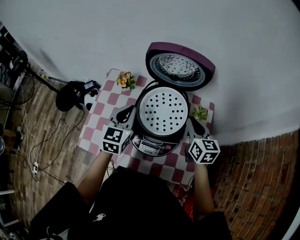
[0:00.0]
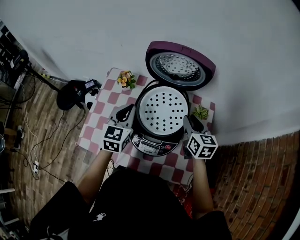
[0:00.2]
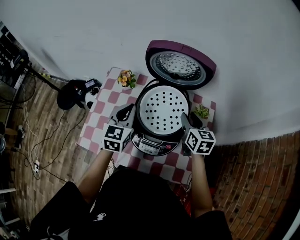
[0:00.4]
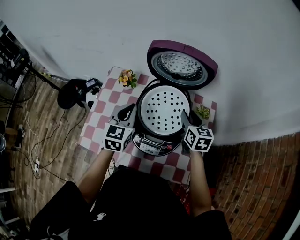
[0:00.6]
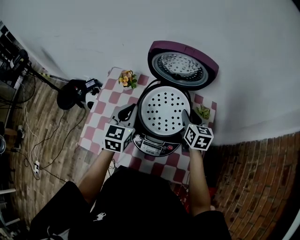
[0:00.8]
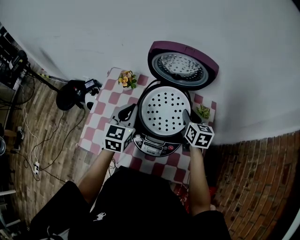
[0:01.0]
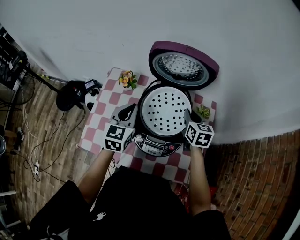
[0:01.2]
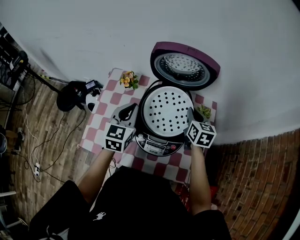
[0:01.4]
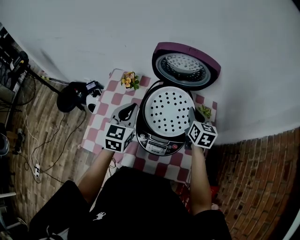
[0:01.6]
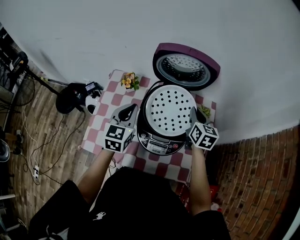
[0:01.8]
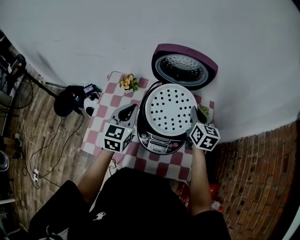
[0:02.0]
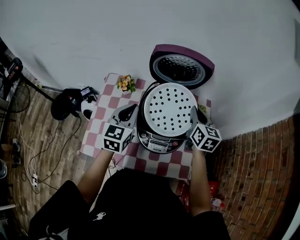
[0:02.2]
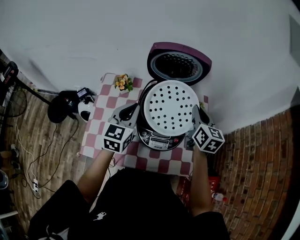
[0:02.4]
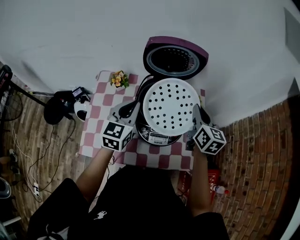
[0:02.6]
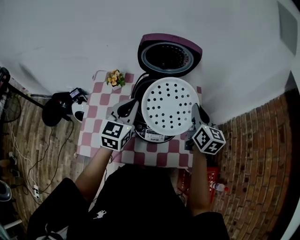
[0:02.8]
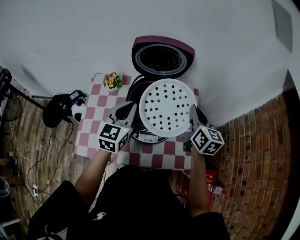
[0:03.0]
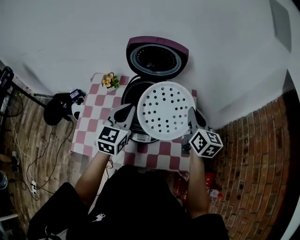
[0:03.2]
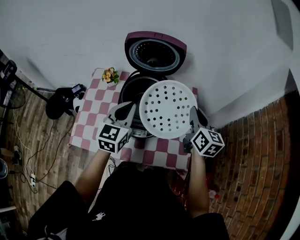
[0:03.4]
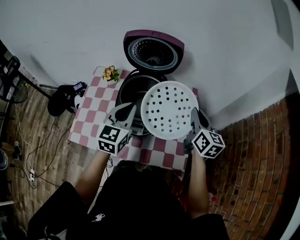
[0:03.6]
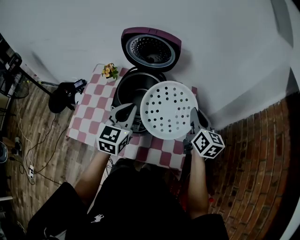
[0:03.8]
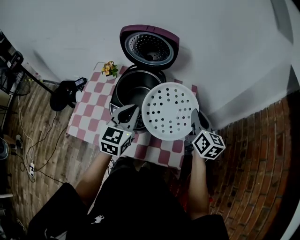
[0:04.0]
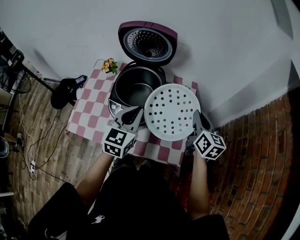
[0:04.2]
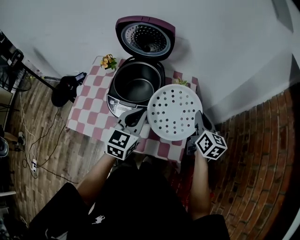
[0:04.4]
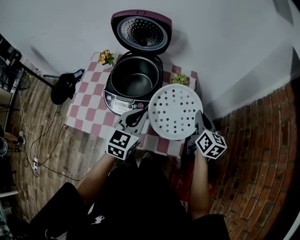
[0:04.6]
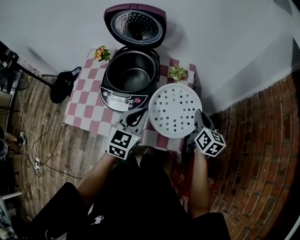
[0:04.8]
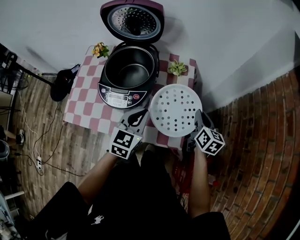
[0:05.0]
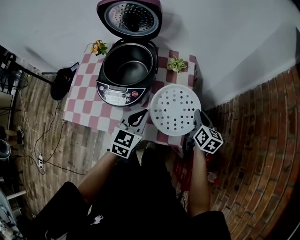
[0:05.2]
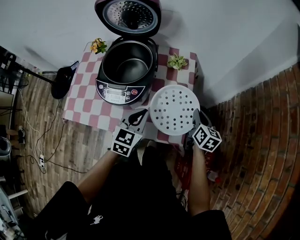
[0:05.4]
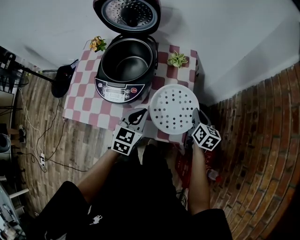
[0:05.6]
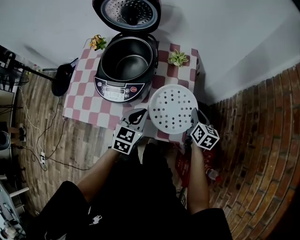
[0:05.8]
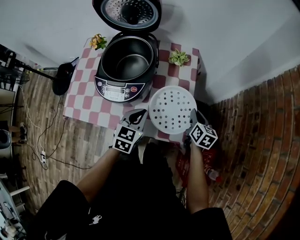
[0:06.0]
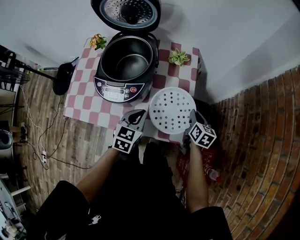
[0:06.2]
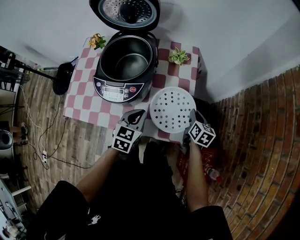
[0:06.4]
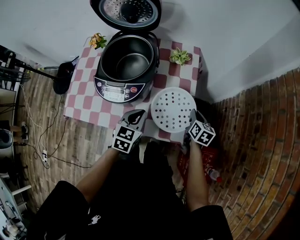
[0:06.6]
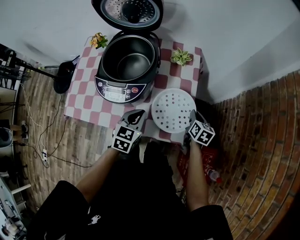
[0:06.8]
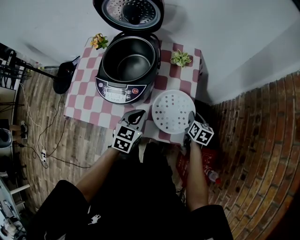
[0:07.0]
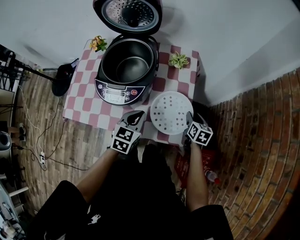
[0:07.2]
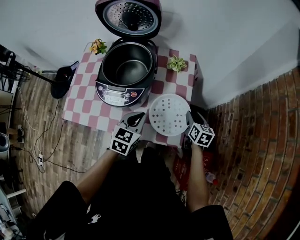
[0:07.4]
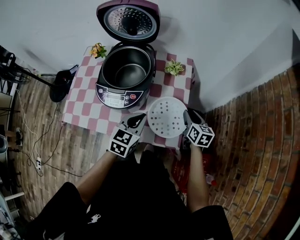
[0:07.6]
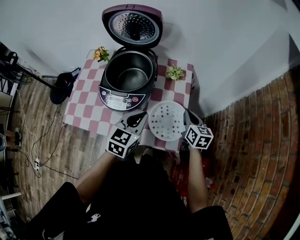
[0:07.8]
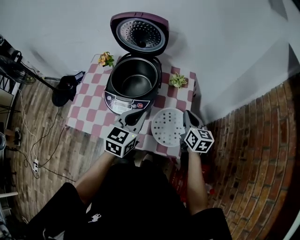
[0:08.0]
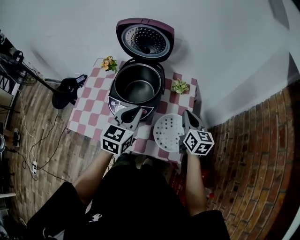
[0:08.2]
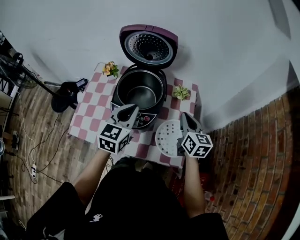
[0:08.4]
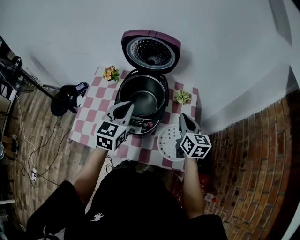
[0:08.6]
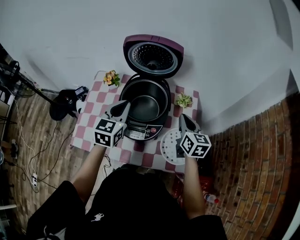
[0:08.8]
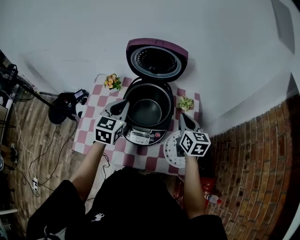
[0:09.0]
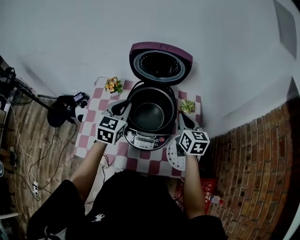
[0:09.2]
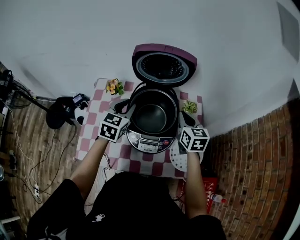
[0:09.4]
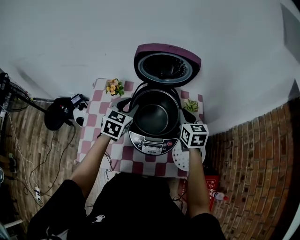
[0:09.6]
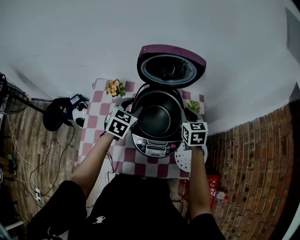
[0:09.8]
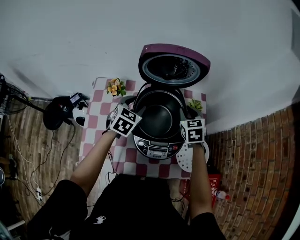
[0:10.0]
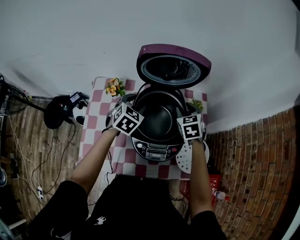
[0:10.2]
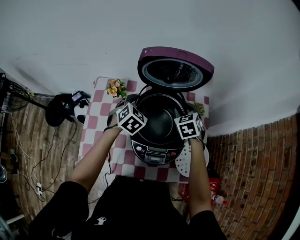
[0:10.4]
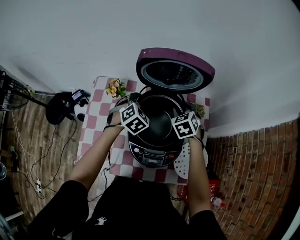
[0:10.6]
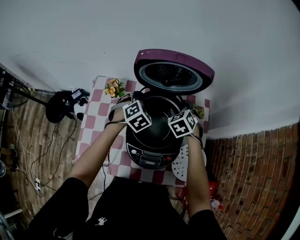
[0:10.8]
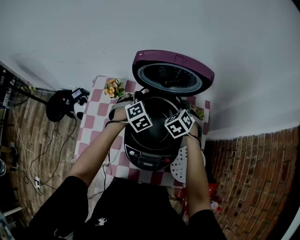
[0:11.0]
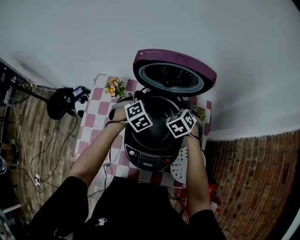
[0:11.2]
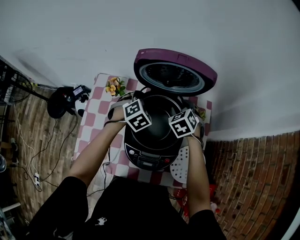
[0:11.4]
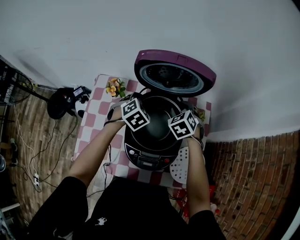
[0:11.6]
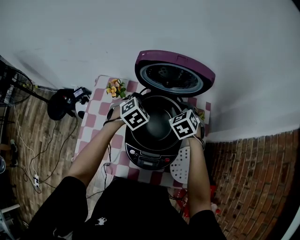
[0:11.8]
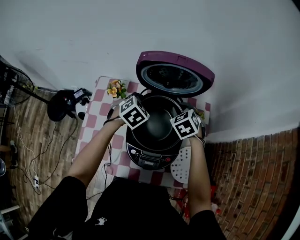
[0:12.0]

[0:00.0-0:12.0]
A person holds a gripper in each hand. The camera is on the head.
0:00.0 to 0:01.6: The right gripper travels forward by about 5 cm, and opens and closes again.
0:01.6 to 0:03.0: The left gripper travels to the right by about 5 cm, while the right gripper moves upward, backward and to the right, approximately 15 cm.
0:03.0 to 0:04.4: The right gripper shifts about 15 cm to the right and downward. The left gripper heads to the right and backward, covering about 20 cm.
0:04.4 to 0:06.0: The two grippers go approximately 15 cm downward.
0:06.0 to 0:07.6: The right gripper travels downward and back again, about 5 cm each way, and opens up.
0:07.6 to 0:09.0: The left gripper heads to the left, forward and upward, covering some 30 cm; the right gripper travels to the left, upward and forward by roughly 25 cm, and closes.
0:09.0 to 0:10.4: The left gripper travels forward and downward by some 15 cm, turns by some 30 degrees, and opens its fingers. The right gripper shifts about 15 cm forward, to the left and downward, turns by approximately 40 degrees, and opens up.
0:10.4 to 0:12.0: The left gripper closes up. The right gripper closes.

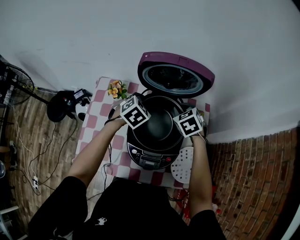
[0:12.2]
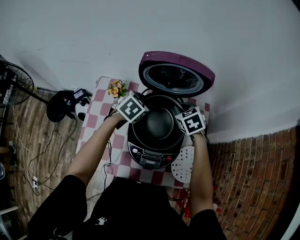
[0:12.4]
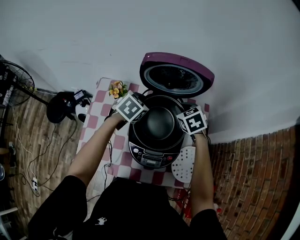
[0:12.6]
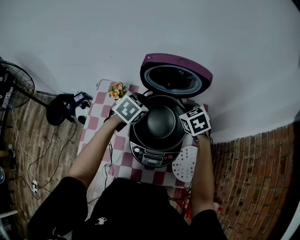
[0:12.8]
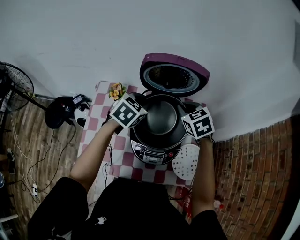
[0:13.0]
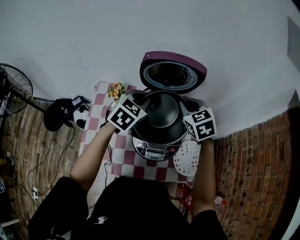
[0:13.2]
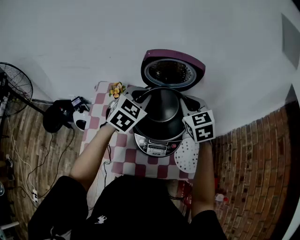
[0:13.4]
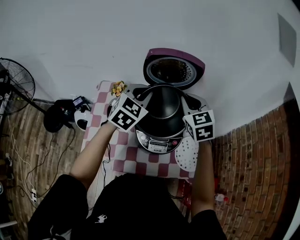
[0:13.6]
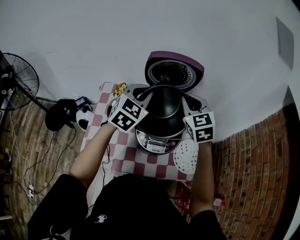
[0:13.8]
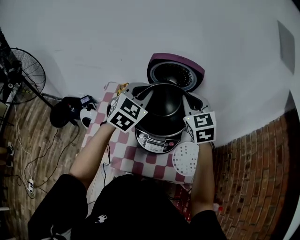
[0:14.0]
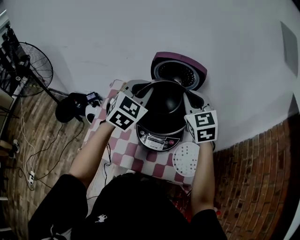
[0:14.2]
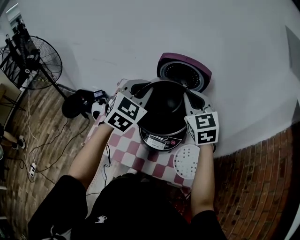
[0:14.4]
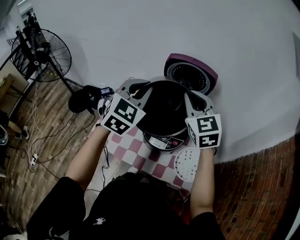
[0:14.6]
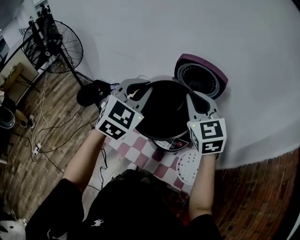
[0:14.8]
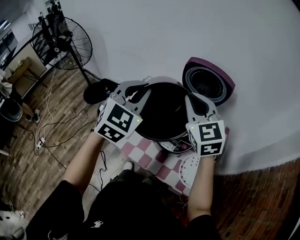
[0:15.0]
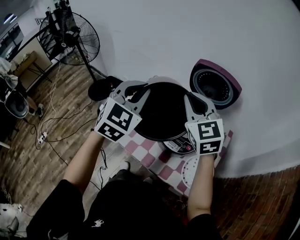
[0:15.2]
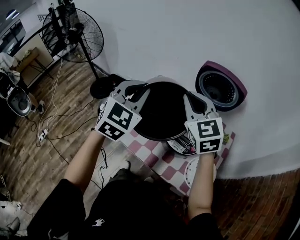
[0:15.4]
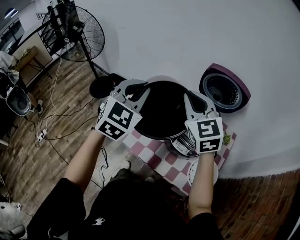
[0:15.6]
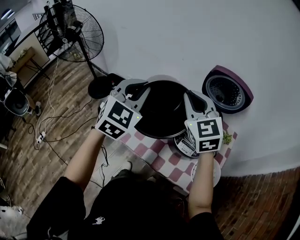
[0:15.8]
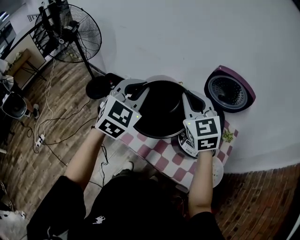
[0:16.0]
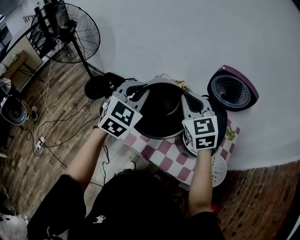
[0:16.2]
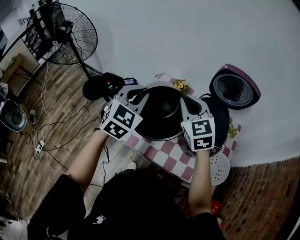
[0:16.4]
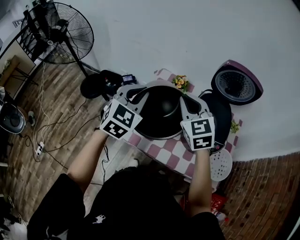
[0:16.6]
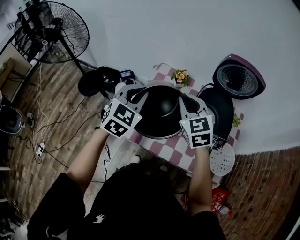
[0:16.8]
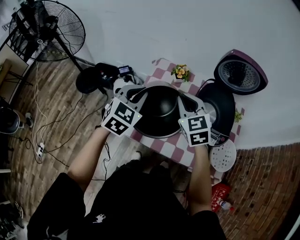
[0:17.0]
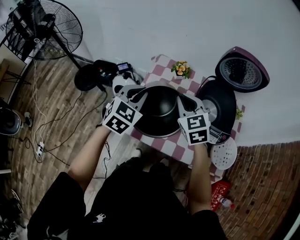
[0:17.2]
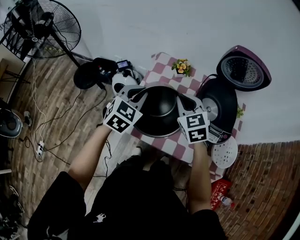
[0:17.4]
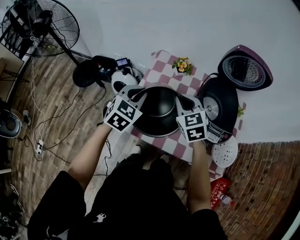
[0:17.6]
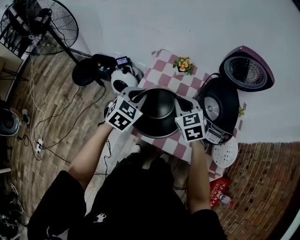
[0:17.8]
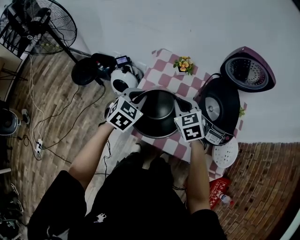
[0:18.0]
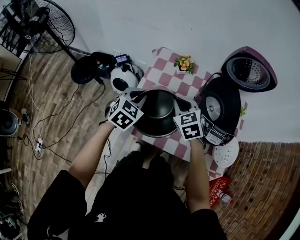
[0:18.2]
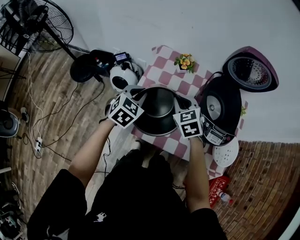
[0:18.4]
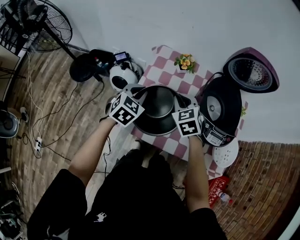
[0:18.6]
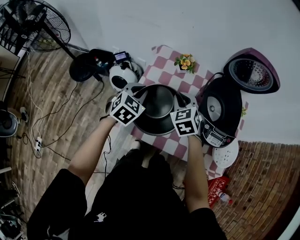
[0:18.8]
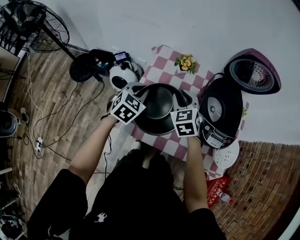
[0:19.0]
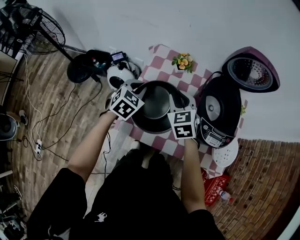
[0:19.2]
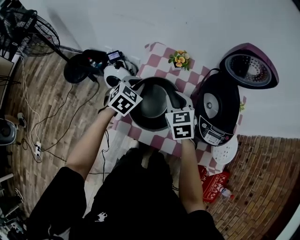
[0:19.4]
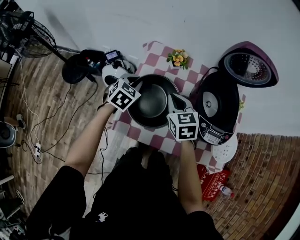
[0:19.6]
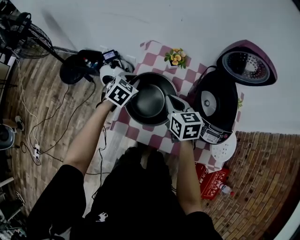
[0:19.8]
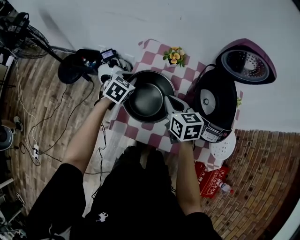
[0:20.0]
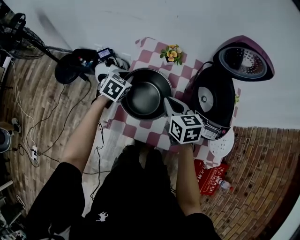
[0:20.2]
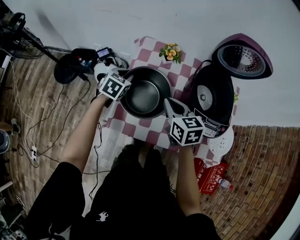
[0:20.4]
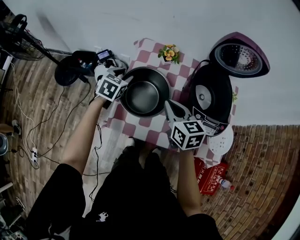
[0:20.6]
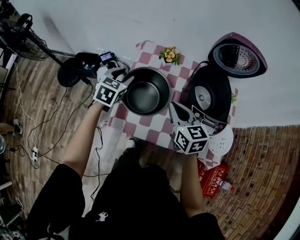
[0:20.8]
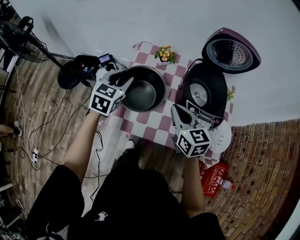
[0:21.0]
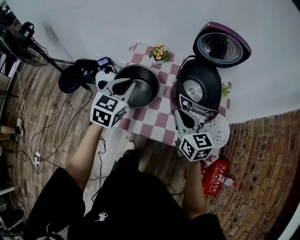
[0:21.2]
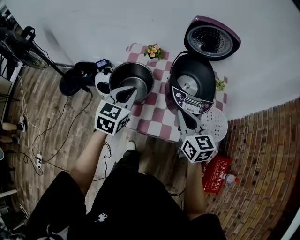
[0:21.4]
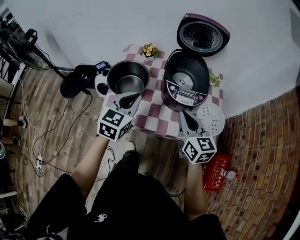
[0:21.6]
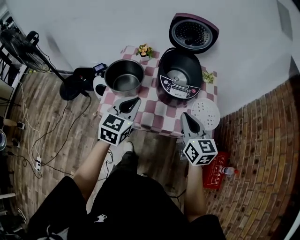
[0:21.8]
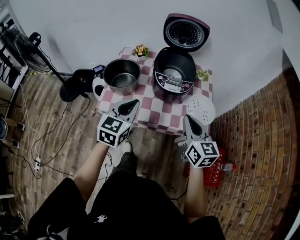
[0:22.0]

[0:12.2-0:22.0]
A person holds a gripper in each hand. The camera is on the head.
0:12.2 to 0:13.6: Both grippers travel together upward and backward, some 20 cm. The right gripper rotates approximately 30 degrees. Meanwhile the left gripper swivels roughly 30 degrees.
0:13.6 to 0:15.0: The right gripper moves approximately 15 cm, and changes its angle by roughly 30 degrees. Meanwhile the left gripper moves approximately 20 cm, and turns by about 30 degrees.
0:15.0 to 0:16.4: Both grippers travel together to the left and downward, roughly 20 cm.
0:16.4 to 0:17.8: Both grippers travel together downward, roughly 15 cm. The right gripper turns by some 20 degrees.
0:17.8 to 0:19.2: The left gripper moves forward and downward, some 10 cm.
0:19.2 to 0:20.6: The left gripper changes place by approximately 5 cm, and opens, while the right gripper is displaced backward by roughly 5 cm, turns by approximately 30 degrees, and closes its fingers.
0:20.6 to 0:22.0: The left gripper travels backward, to the right and upward by about 40 cm, swivels about 30 degrees, and closes its fingers. Meanwhile the right gripper travels backward and to the right by about 35 cm, and swivels about 20 degrees.

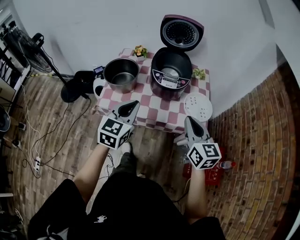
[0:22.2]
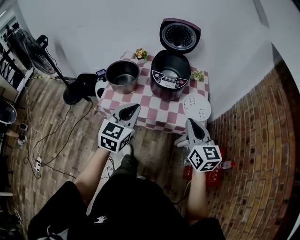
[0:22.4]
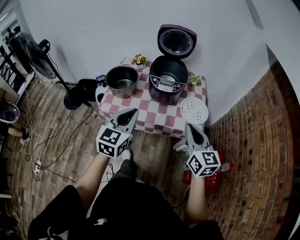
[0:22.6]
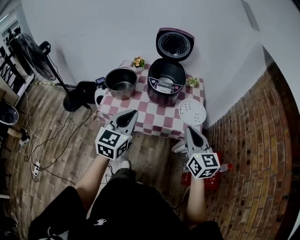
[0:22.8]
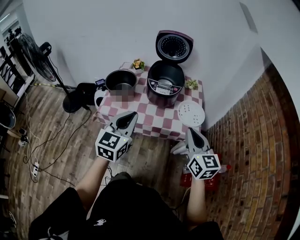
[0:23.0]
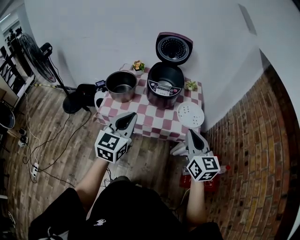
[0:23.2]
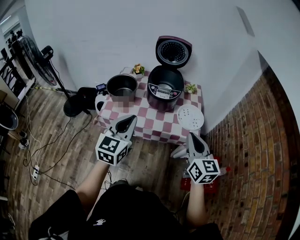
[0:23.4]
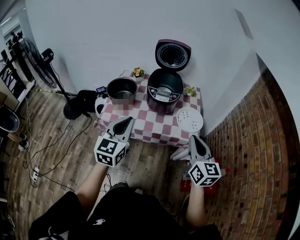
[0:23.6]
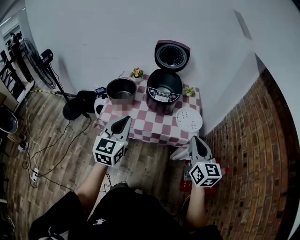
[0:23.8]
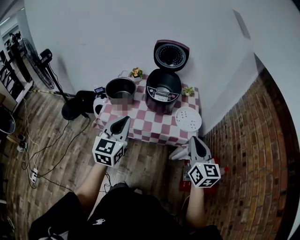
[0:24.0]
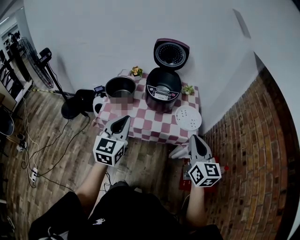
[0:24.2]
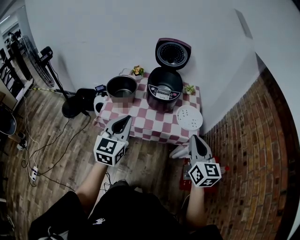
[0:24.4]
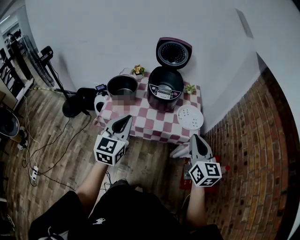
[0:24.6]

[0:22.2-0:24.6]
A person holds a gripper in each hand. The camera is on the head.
0:22.2 to 0:23.4: The right gripper travels backward by about 10 cm, while the left gripper heads backward and upward, covering approximately 10 cm.
0:23.4 to 0:24.6: The grippers make only small movements.
